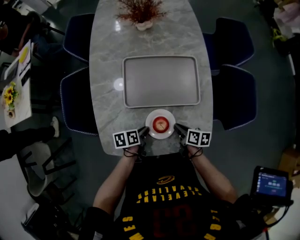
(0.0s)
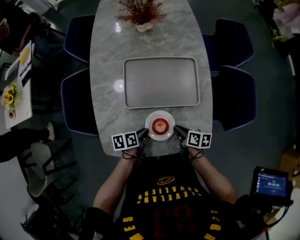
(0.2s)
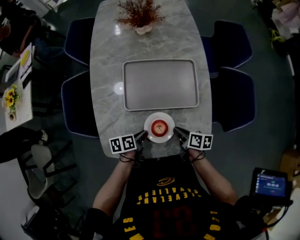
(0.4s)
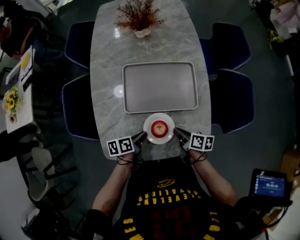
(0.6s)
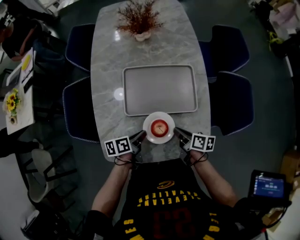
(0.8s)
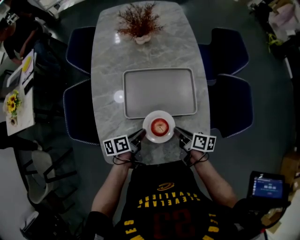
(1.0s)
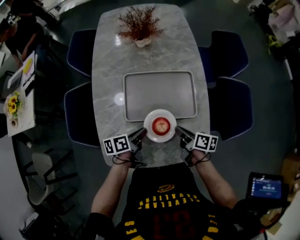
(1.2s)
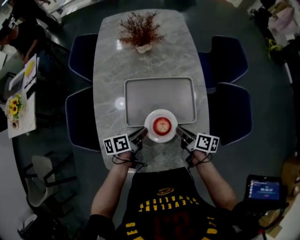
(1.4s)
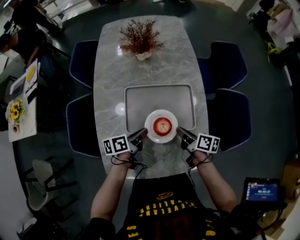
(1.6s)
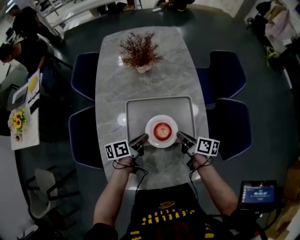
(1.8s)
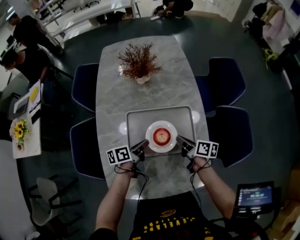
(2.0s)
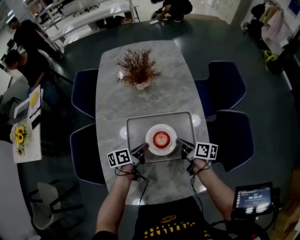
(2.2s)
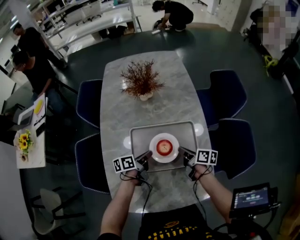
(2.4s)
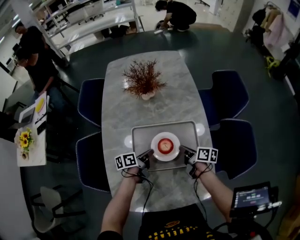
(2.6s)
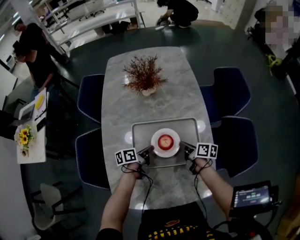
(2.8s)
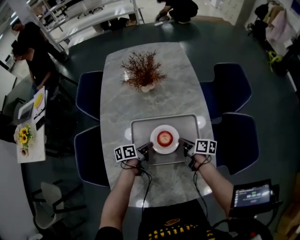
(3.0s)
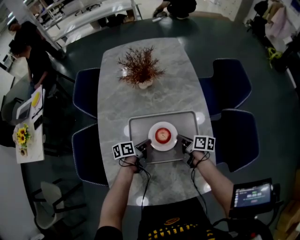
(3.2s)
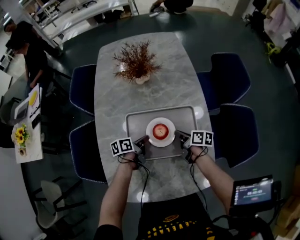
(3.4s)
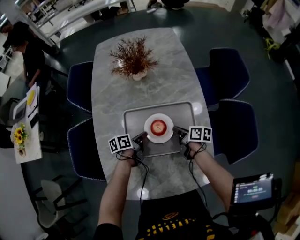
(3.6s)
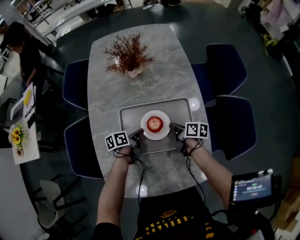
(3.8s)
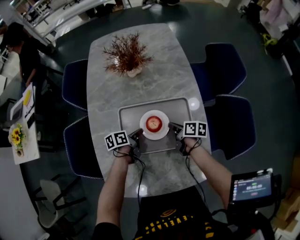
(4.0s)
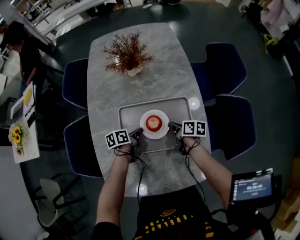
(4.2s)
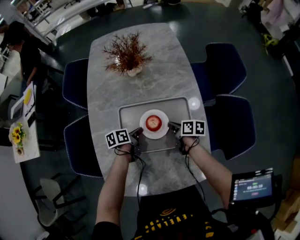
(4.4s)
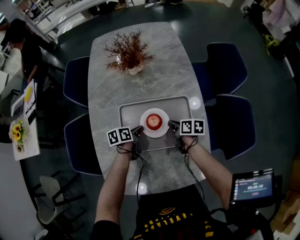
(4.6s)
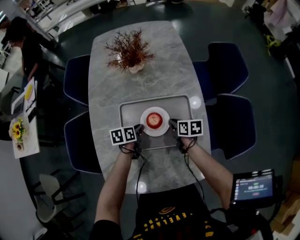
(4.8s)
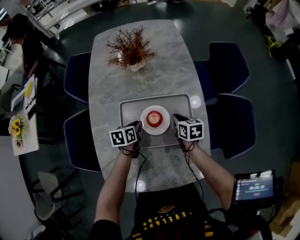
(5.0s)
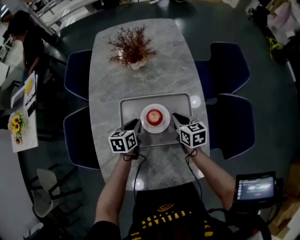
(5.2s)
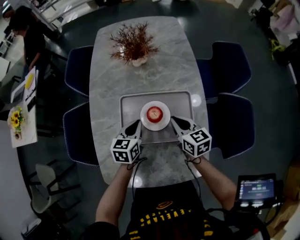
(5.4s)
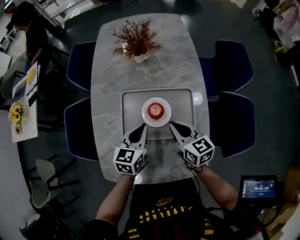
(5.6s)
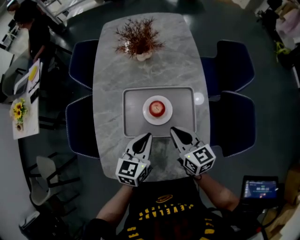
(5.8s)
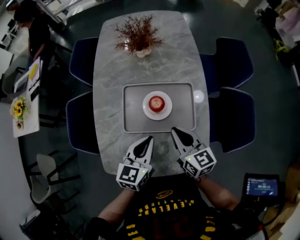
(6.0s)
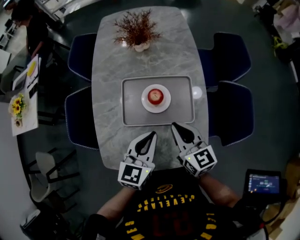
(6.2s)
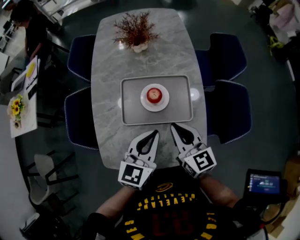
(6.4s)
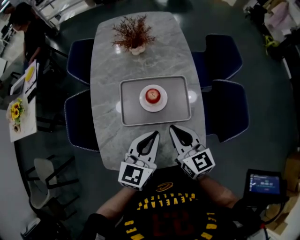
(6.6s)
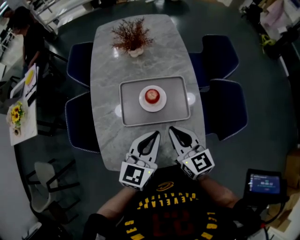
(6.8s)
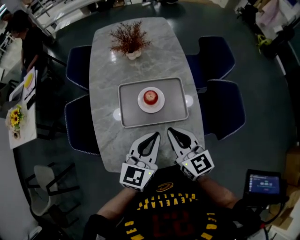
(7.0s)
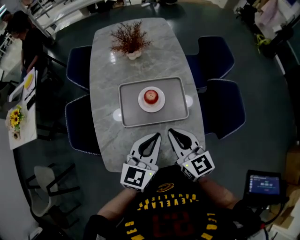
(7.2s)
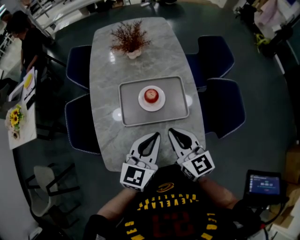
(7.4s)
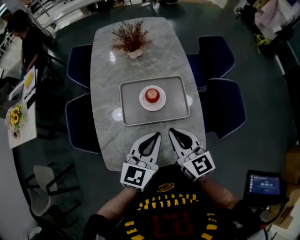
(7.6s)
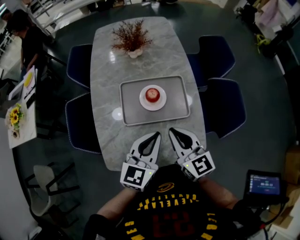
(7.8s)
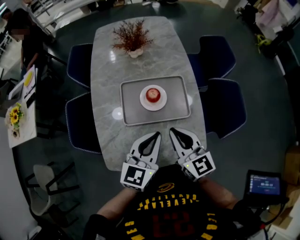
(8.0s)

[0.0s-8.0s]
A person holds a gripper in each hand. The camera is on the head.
0.0s to 1.6s: Both grippers travel together forward and upward, about 15 cm. The left gripper rotates about 20 degrees.
1.6s to 3.2s: Both grippers travel together forward and downward, roughly 15 cm.
3.2s to 4.8s: The left gripper changes its angle by roughly 30 degrees, while the right gripper rotates about 20 degrees.
4.8s to 6.4s: Both grippers travel together upward and backward, some 30 cm. The right gripper tips its fingers upward by about 30 degrees; the left gripper tilts its fingers roughly 30 degrees upward.
6.4s to 8.0s: The right gripper changes place by approximately 5 cm.

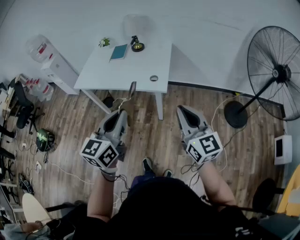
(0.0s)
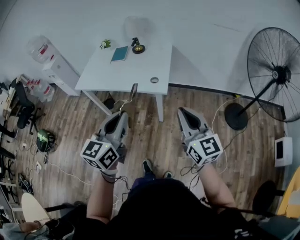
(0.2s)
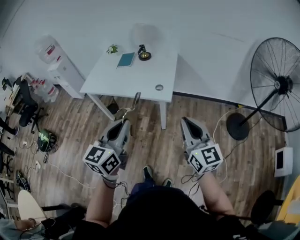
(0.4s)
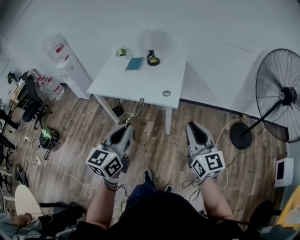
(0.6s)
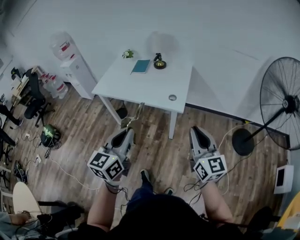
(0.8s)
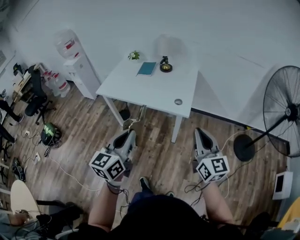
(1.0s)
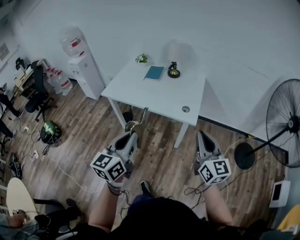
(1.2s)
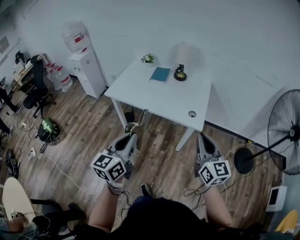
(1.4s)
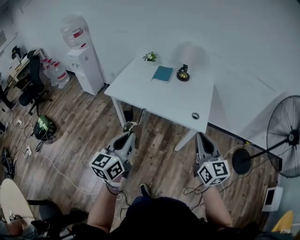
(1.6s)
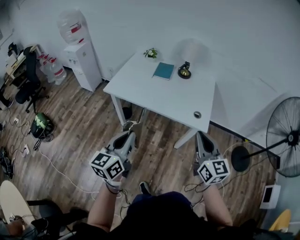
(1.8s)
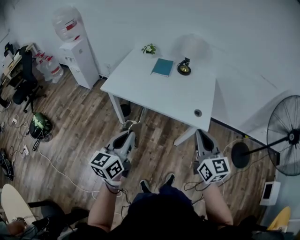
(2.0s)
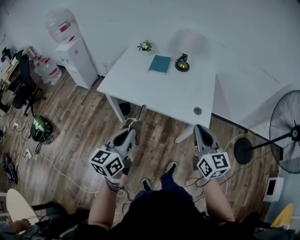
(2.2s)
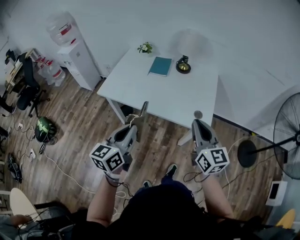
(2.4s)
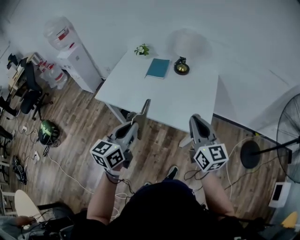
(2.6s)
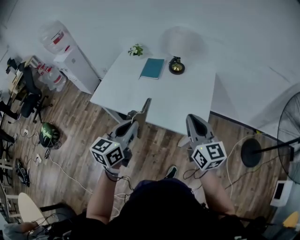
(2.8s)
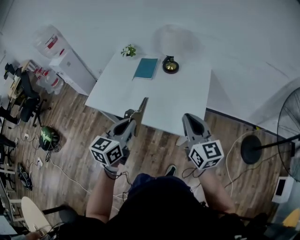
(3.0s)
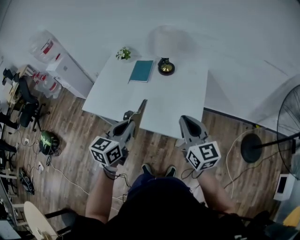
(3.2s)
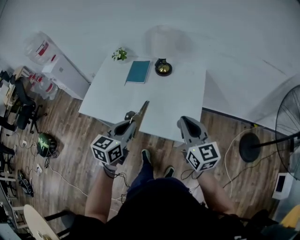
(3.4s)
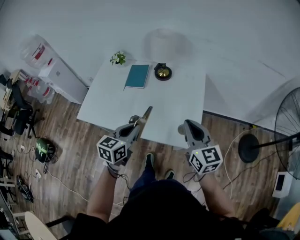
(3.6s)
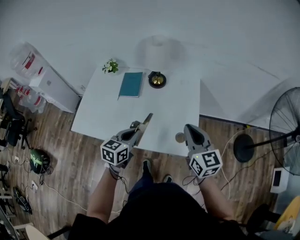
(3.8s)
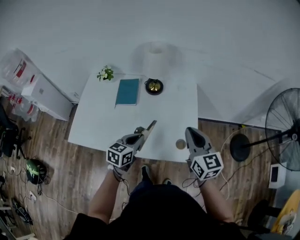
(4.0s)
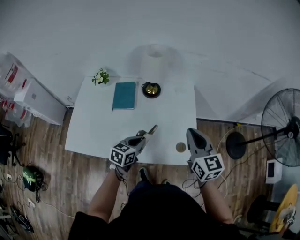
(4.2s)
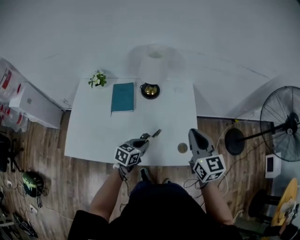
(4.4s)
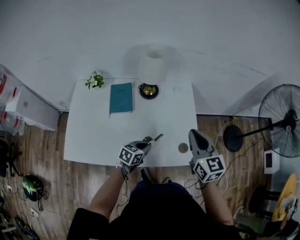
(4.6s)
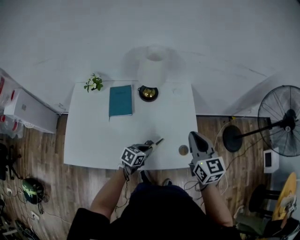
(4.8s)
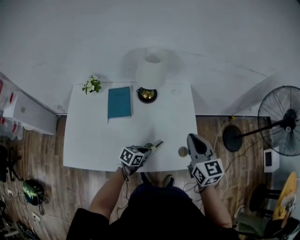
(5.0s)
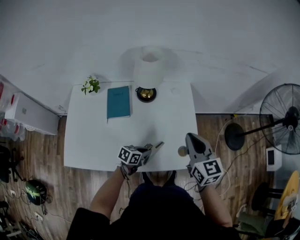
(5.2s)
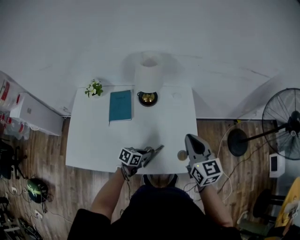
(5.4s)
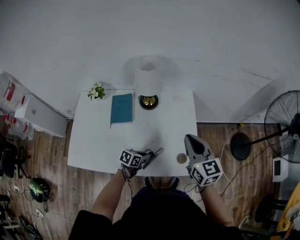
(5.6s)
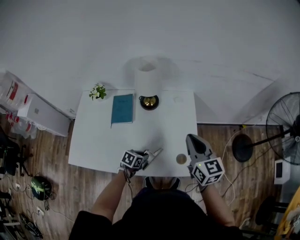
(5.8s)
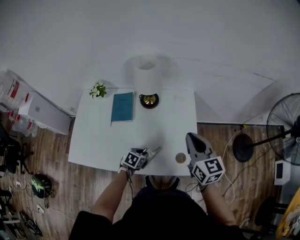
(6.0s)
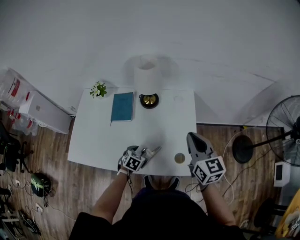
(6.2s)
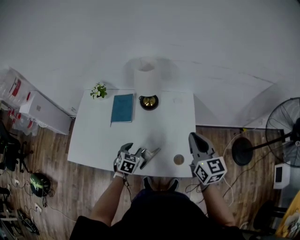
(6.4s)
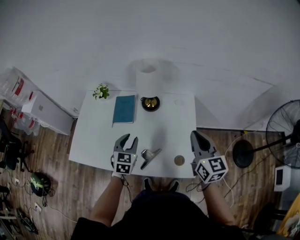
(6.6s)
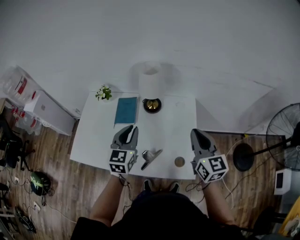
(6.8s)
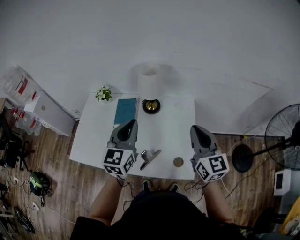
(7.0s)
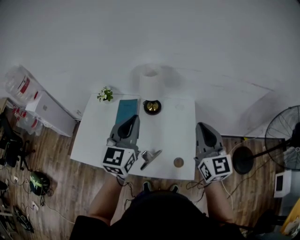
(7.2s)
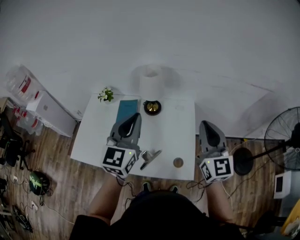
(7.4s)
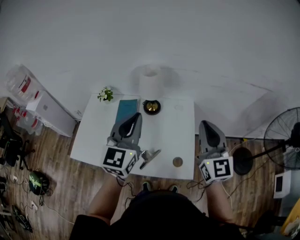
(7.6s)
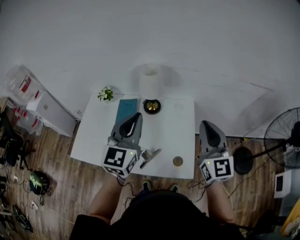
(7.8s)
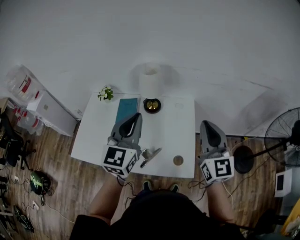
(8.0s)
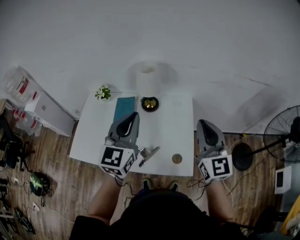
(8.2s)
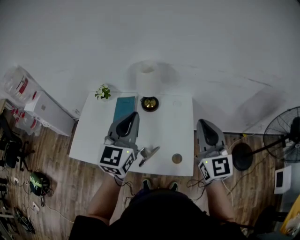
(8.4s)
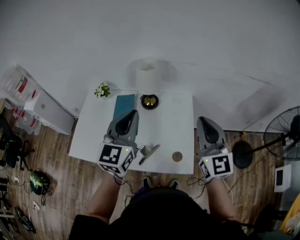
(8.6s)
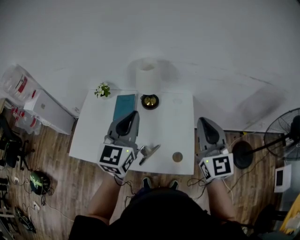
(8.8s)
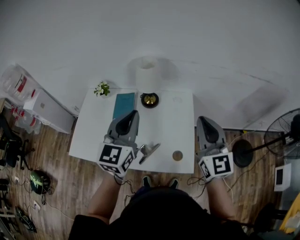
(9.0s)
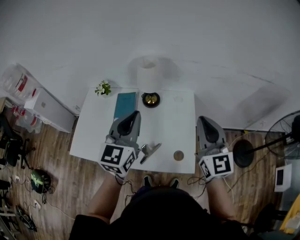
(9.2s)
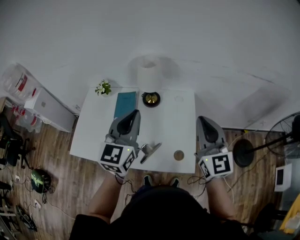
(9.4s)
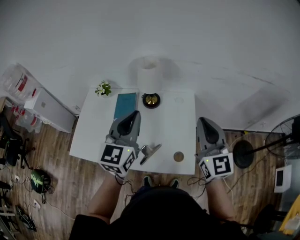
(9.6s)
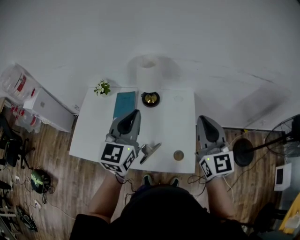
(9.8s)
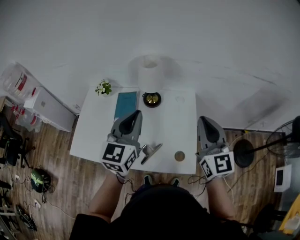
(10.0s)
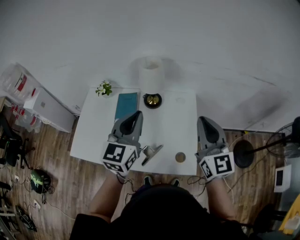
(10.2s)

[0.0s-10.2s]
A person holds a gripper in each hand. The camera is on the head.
0.0s to 1.4s: Both grippers move to the left, about 20 cm.
1.4s to 3.0s: The grippers both shift forward by some 30 cm.
3.0s to 4.4s: The right gripper changes place by roughly 20 cm, and rotates about 20 degrees. Meanwhile the left gripper shifts by some 30 cm, and turns by roughly 40 degrees.
4.4s to 5.8s: The left gripper travels downward by about 10 cm, and changes its angle by roughly 20 degrees; the right gripper travels forward by some 5 cm.
5.8s to 7.2s: The left gripper goes roughly 40 cm upward, tilts its fingers approximately 50 degrees upward, and opens, then closes once more. Meanwhile the right gripper travels upward by approximately 10 cm.
7.2s to 10.2s: The grippers make only small movements.

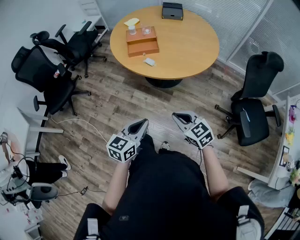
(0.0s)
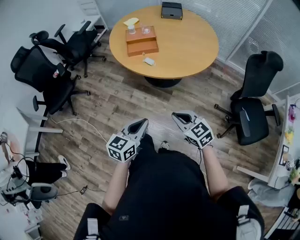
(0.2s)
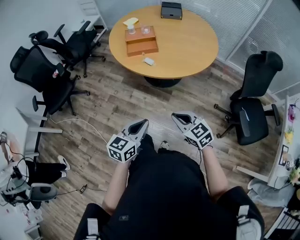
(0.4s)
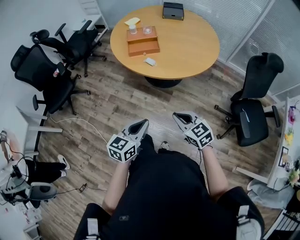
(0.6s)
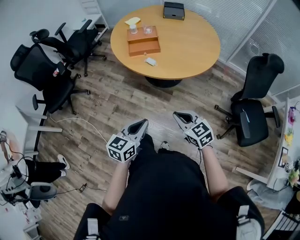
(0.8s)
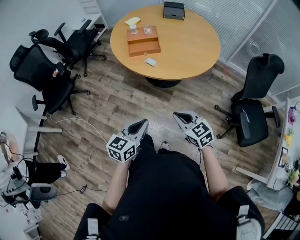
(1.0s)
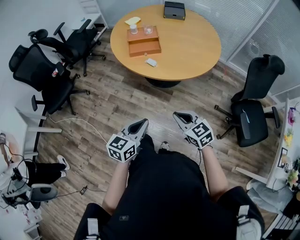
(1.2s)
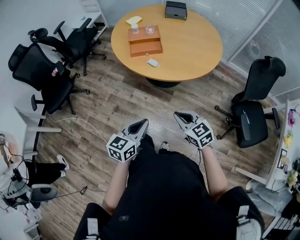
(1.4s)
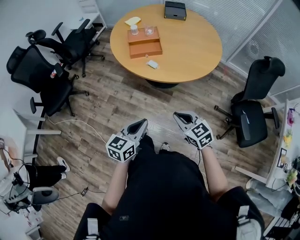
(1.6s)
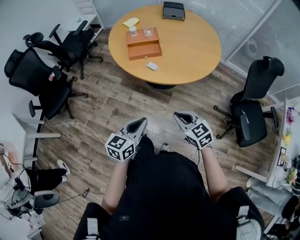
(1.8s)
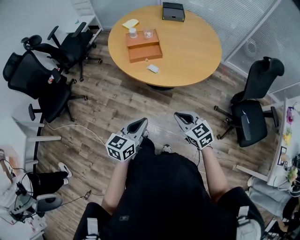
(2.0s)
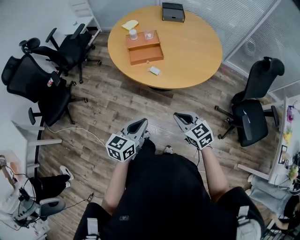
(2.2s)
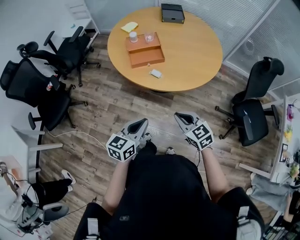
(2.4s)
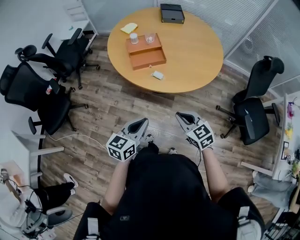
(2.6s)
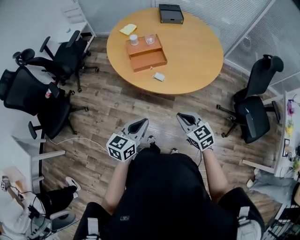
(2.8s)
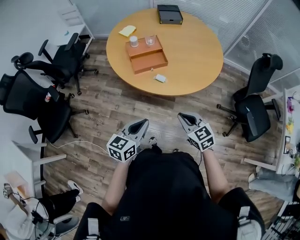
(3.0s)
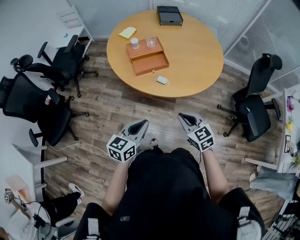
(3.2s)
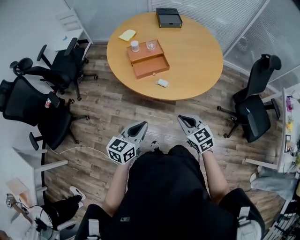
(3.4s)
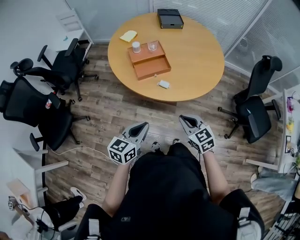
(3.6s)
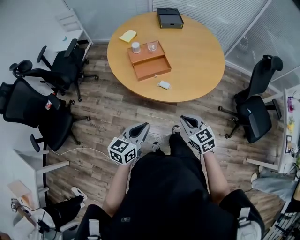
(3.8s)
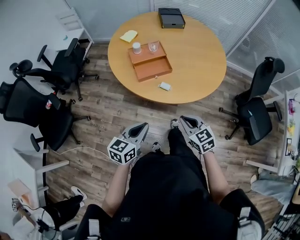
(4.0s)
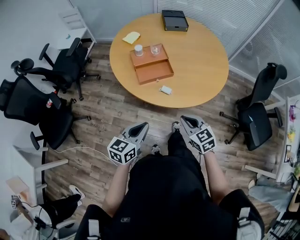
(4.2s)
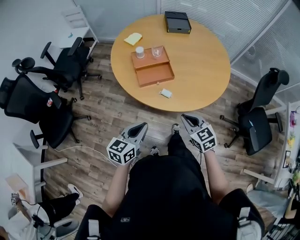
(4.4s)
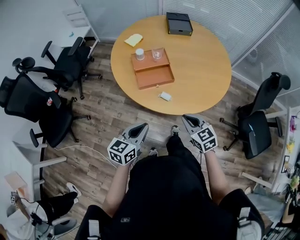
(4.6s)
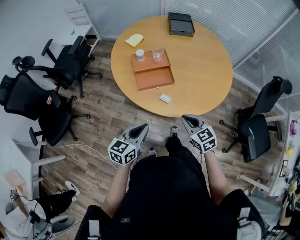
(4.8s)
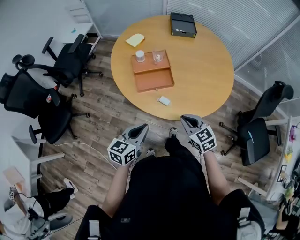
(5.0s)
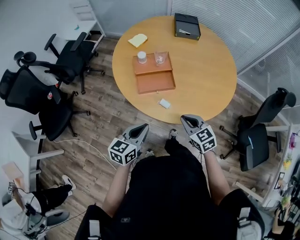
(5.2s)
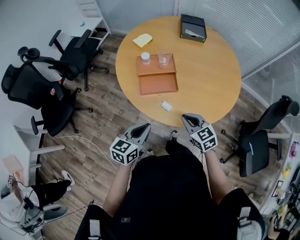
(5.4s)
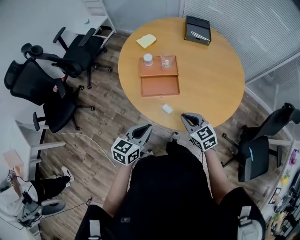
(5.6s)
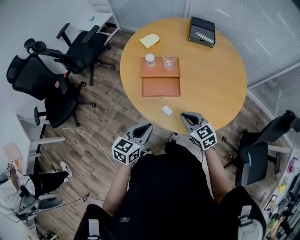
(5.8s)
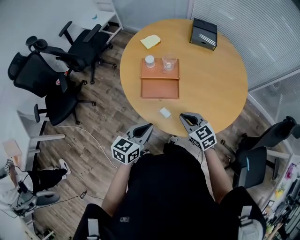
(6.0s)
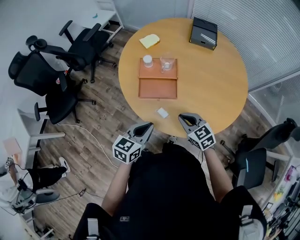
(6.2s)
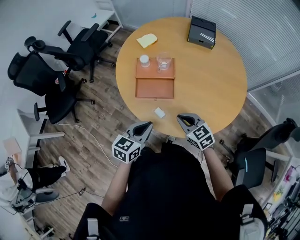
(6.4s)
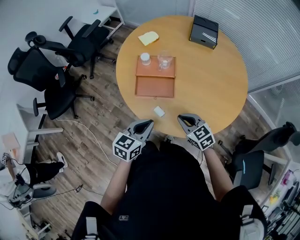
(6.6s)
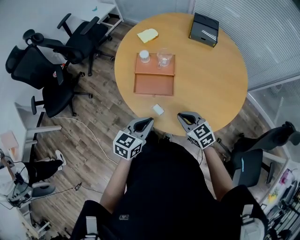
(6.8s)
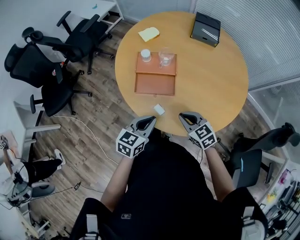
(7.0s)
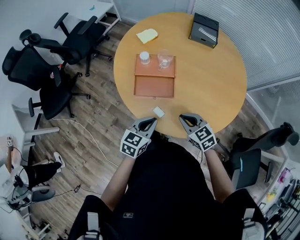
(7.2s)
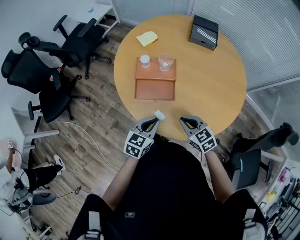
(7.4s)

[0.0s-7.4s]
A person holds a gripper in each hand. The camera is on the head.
0.0s to 1.4s: The grippers move only a little.
1.4s to 3.0s: Both grippers travel together forward and to the left, approximately 15 cm.
3.0s to 4.4s: Both grippers move forward, roughly 10 cm.
4.4s to 6.0s: The right gripper moves forward, about 15 cm, and rotates approximately 20 degrees. Meanwhile the left gripper travels forward and to the right by roughly 15 cm.
6.0s to 7.4s: The left gripper shifts some 10 cm to the right and downward.
